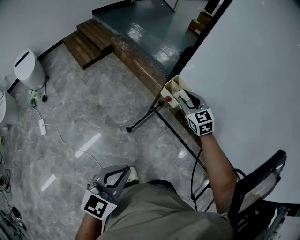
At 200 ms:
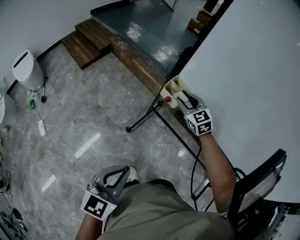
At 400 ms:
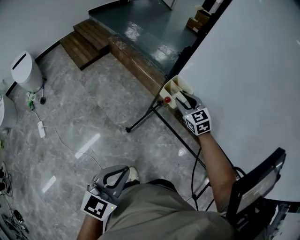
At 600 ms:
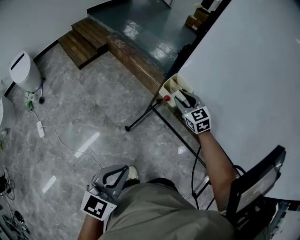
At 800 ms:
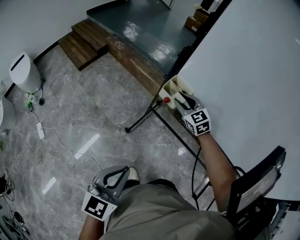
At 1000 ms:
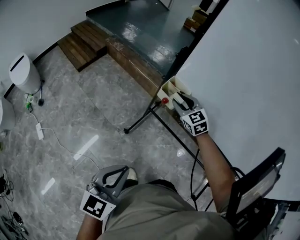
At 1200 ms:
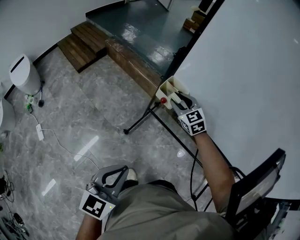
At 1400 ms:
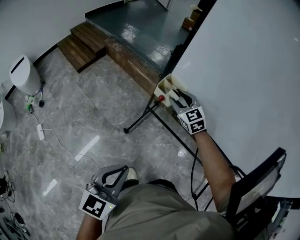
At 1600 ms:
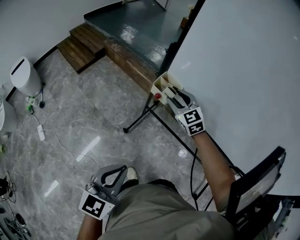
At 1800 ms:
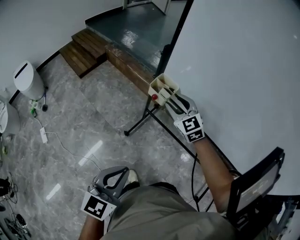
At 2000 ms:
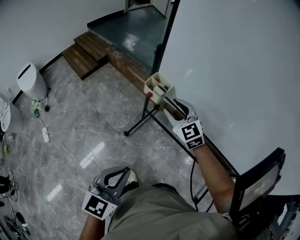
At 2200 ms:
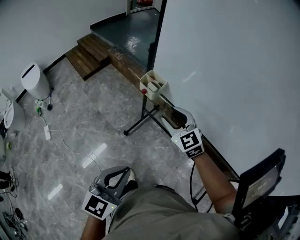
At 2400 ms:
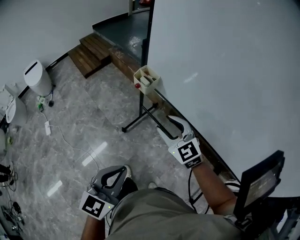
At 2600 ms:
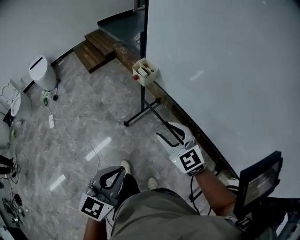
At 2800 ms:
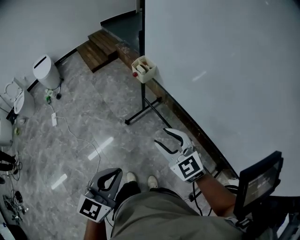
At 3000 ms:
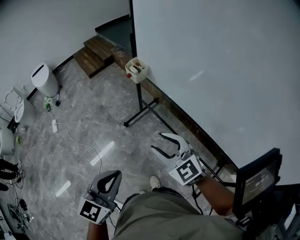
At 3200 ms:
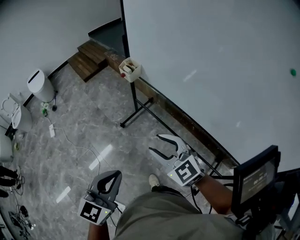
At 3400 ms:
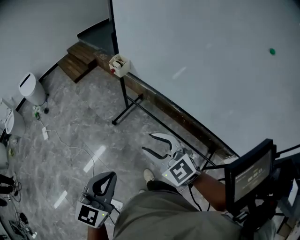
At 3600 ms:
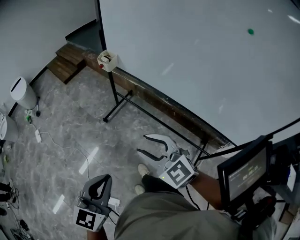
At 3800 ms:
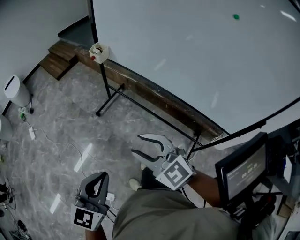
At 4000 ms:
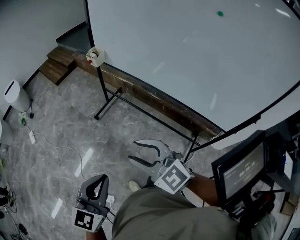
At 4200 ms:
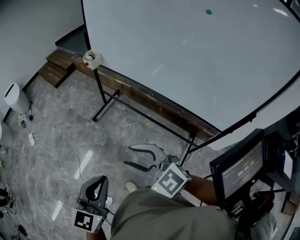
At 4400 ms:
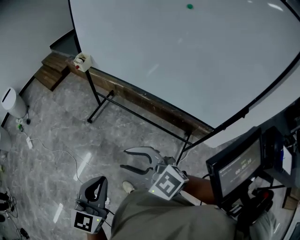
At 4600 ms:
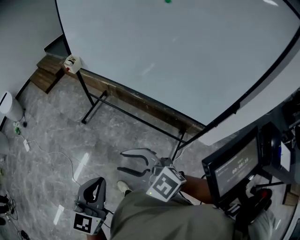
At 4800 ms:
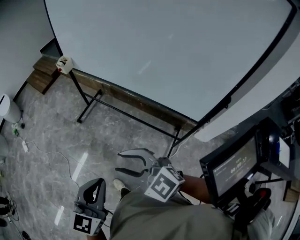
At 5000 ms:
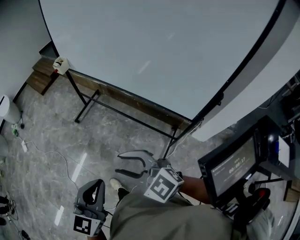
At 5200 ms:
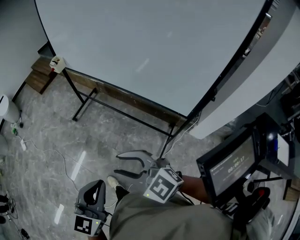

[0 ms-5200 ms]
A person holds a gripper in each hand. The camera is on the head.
0 ms to 1800 ms: The left gripper is displaced to the right by some 5 cm.
1800 ms to 3400 ms: The left gripper is displaced backward and to the right by roughly 35 cm. Meanwhile the right gripper heads backward, covering about 50 cm.
3400 ms to 5200 ms: The pair of grippers is taken backward and to the right, roughly 40 cm.

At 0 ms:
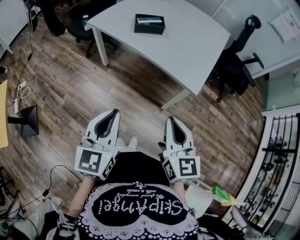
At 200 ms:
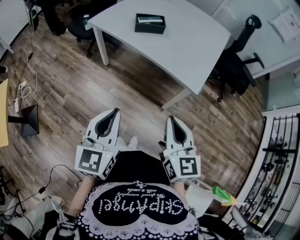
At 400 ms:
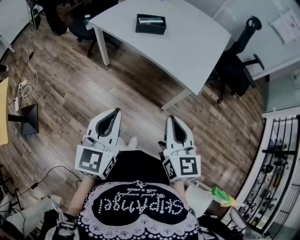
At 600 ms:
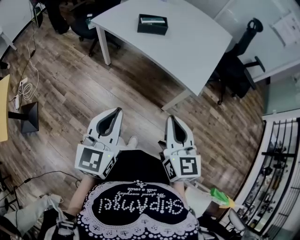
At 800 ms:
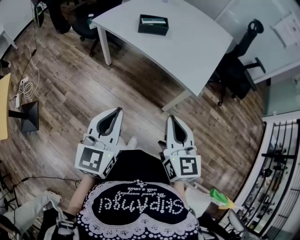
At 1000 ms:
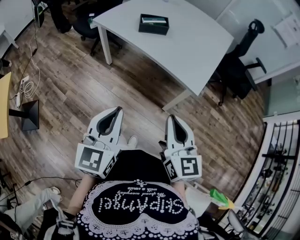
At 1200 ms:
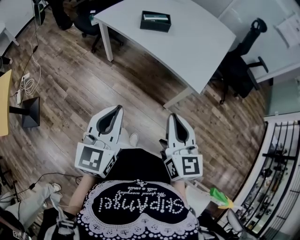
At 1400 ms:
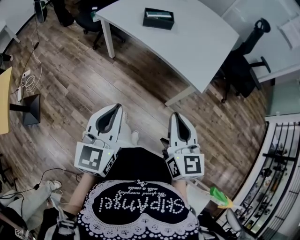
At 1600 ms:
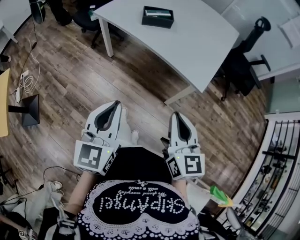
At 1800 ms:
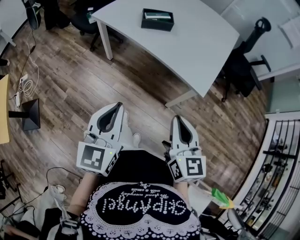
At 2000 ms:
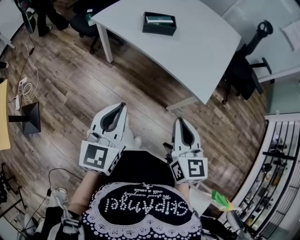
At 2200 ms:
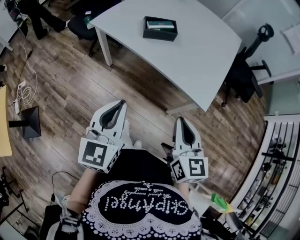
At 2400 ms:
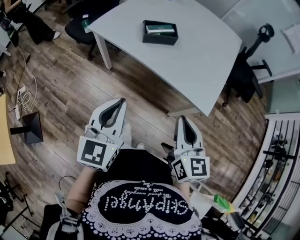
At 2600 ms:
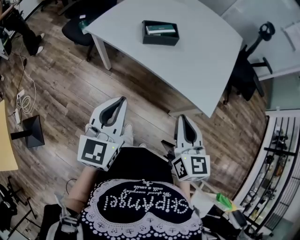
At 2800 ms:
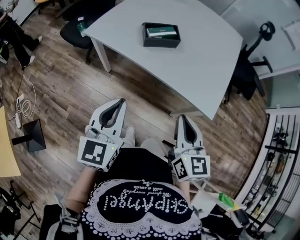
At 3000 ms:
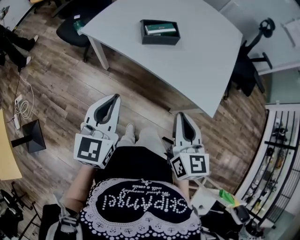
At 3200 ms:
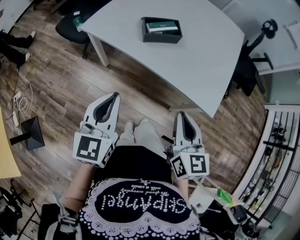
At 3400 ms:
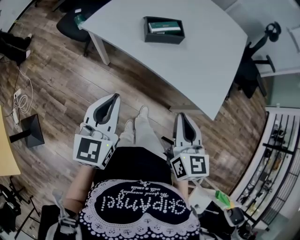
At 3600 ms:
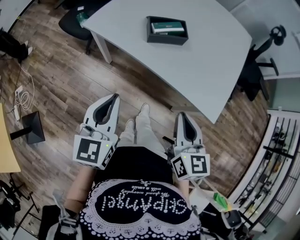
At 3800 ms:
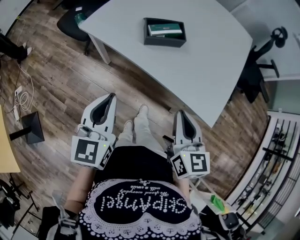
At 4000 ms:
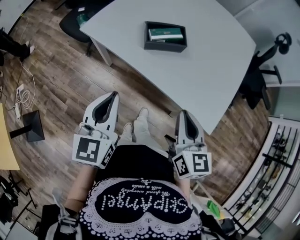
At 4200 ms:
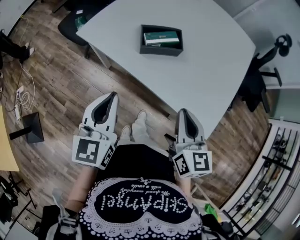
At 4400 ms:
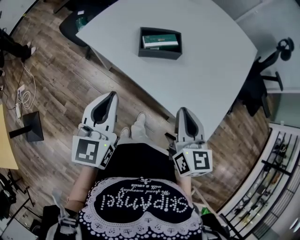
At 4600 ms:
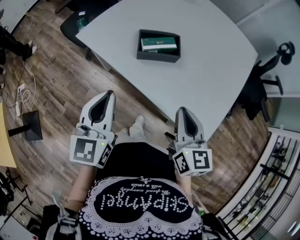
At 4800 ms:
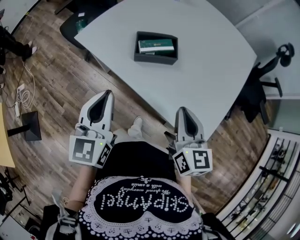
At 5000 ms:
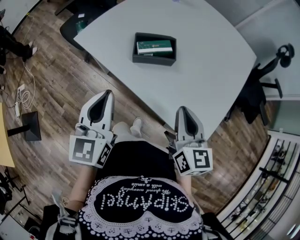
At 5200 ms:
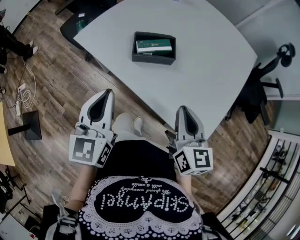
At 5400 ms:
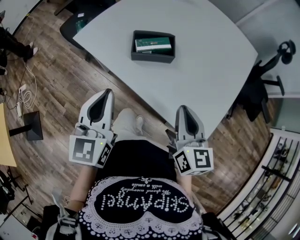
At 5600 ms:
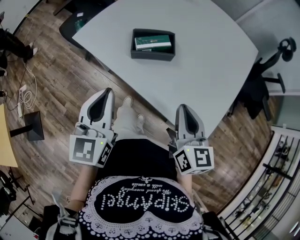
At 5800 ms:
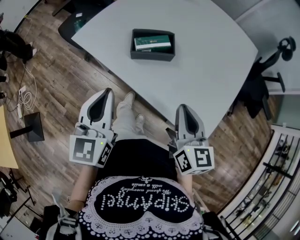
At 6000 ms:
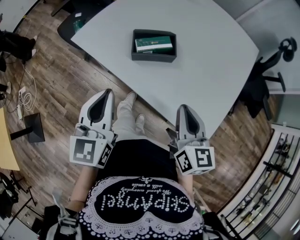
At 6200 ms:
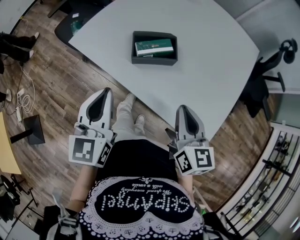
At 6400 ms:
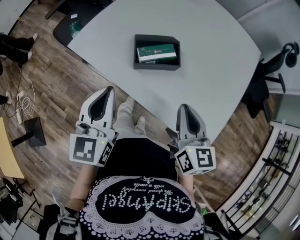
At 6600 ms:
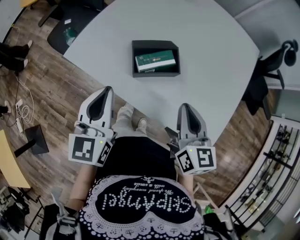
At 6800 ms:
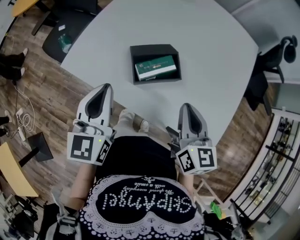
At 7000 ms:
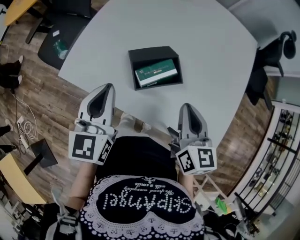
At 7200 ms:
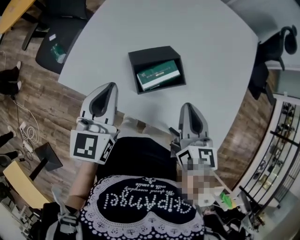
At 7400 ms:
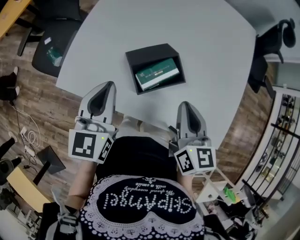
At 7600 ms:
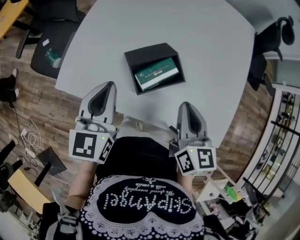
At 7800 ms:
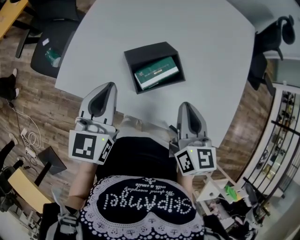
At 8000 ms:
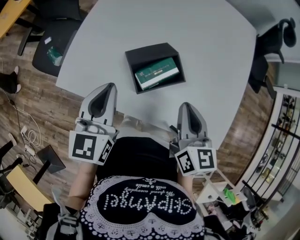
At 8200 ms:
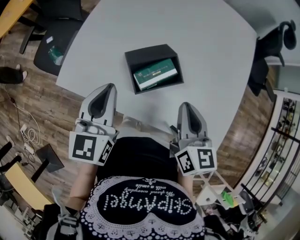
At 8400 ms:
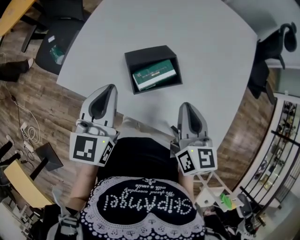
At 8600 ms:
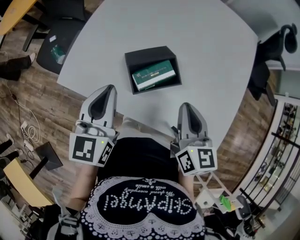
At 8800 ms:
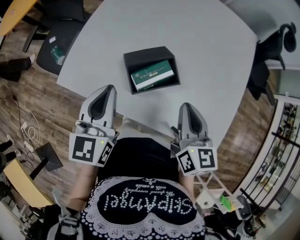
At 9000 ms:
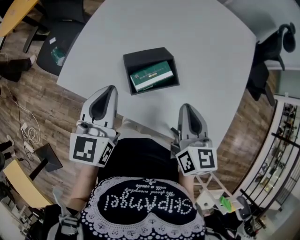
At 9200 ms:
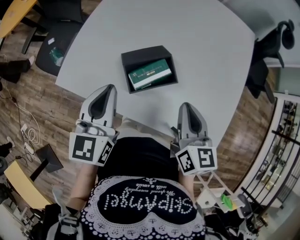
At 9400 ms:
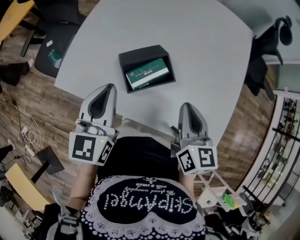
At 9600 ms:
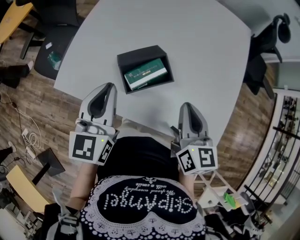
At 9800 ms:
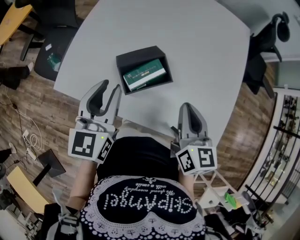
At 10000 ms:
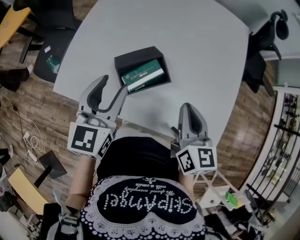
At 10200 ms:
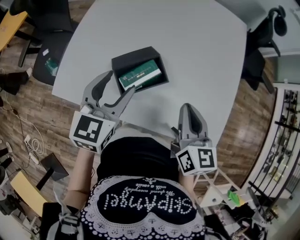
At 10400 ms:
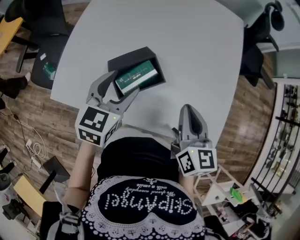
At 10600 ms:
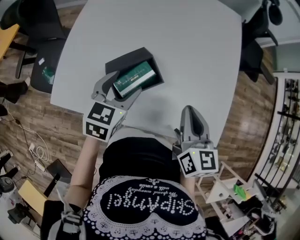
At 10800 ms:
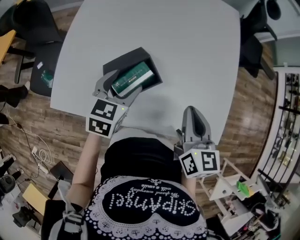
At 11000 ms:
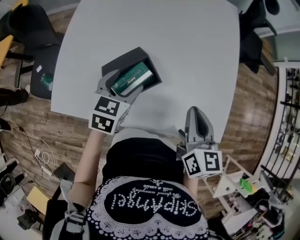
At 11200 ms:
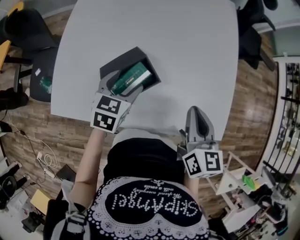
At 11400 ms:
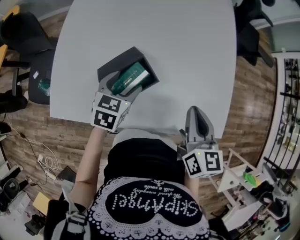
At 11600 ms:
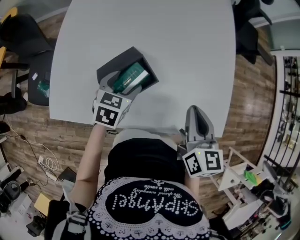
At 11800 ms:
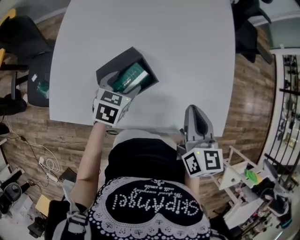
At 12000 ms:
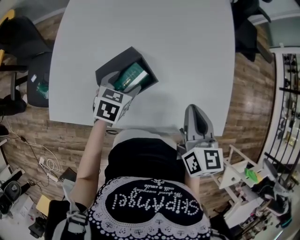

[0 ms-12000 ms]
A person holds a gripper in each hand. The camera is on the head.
0 ms to 1600 ms: There are only small adjustments of the grippers.
1600 ms to 3000 ms: The right gripper heads forward, covering about 20 cm. The left gripper heads forward and to the left, covering roughly 25 cm.
3000 ms to 4400 ms: Both grippers travel together forward, about 15 cm.
4400 ms to 6000 ms: The grippers move only a little.
6000 ms to 7600 ms: The right gripper shifts some 20 cm forward and to the left, and turns by some 20 degrees. Meanwhile the left gripper heads forward, covering roughly 25 cm, and changes its angle by about 20 degrees.
7600 ms to 9000 ms: The grippers stay close to where they were, moving slightly.
9000 ms to 10400 ms: The left gripper goes about 10 cm to the right and downward, turns by approximately 30 degrees, and opens its fingers, while the right gripper moves to the right, approximately 5 cm.
10400 ms to 12000 ms: The left gripper is displaced downward by some 15 cm, and turns by some 20 degrees.

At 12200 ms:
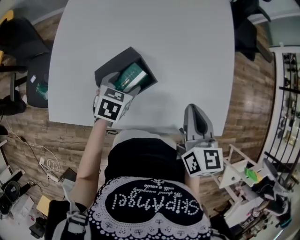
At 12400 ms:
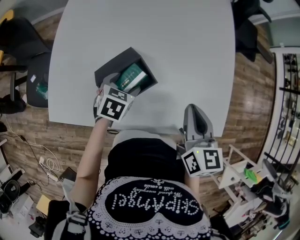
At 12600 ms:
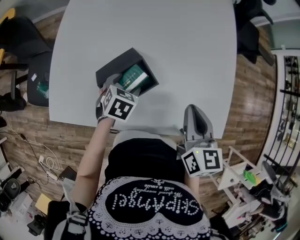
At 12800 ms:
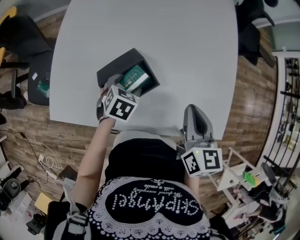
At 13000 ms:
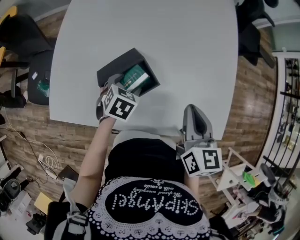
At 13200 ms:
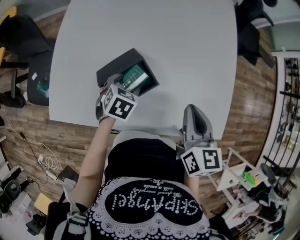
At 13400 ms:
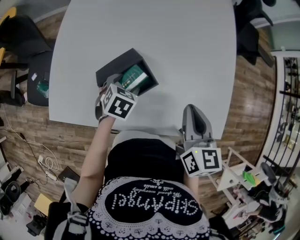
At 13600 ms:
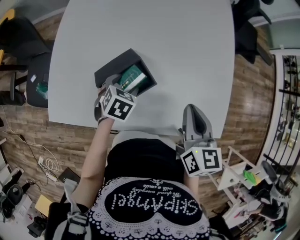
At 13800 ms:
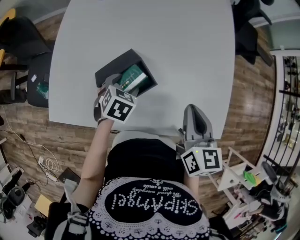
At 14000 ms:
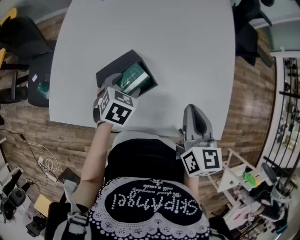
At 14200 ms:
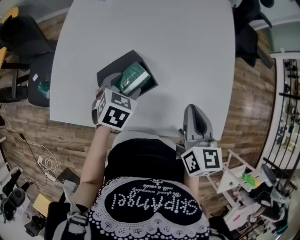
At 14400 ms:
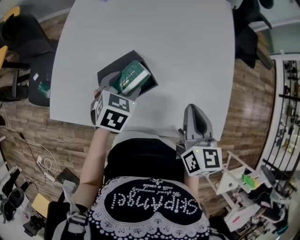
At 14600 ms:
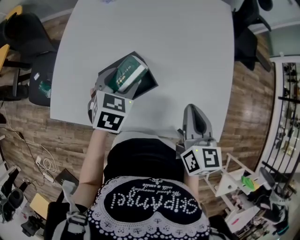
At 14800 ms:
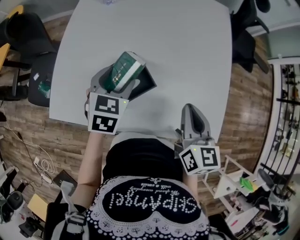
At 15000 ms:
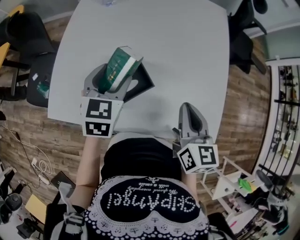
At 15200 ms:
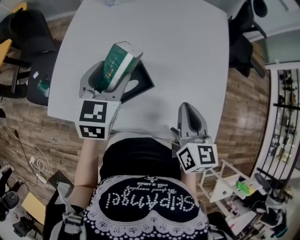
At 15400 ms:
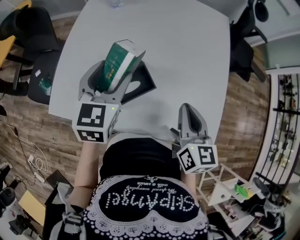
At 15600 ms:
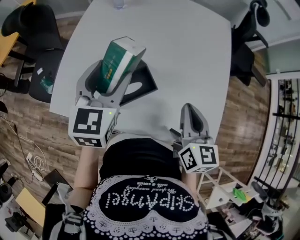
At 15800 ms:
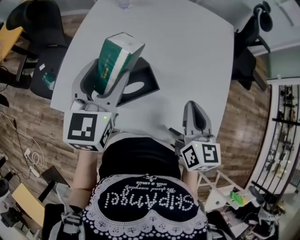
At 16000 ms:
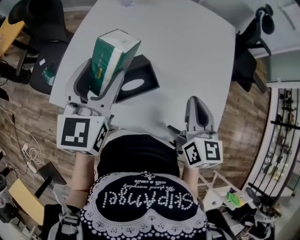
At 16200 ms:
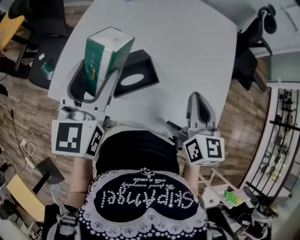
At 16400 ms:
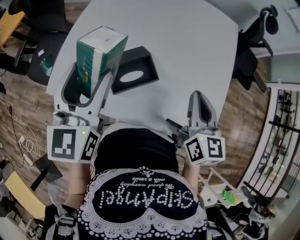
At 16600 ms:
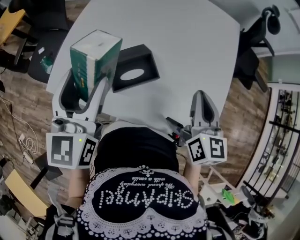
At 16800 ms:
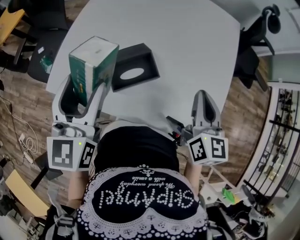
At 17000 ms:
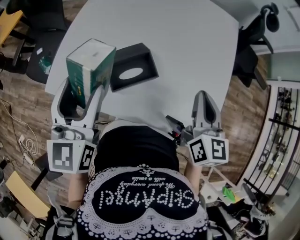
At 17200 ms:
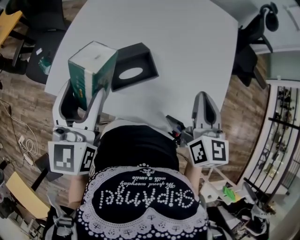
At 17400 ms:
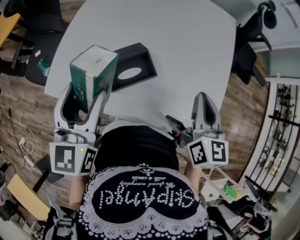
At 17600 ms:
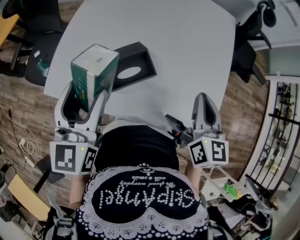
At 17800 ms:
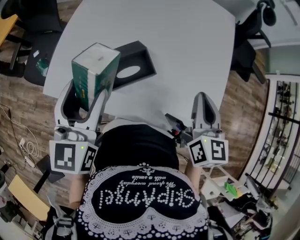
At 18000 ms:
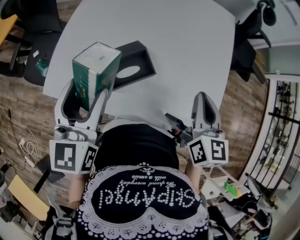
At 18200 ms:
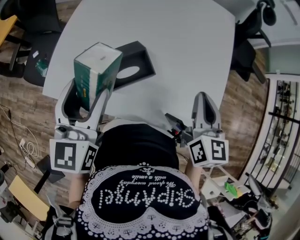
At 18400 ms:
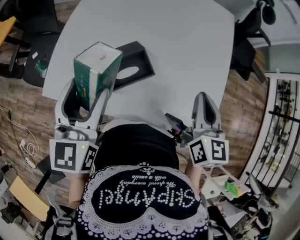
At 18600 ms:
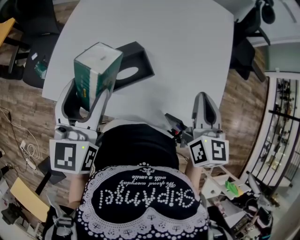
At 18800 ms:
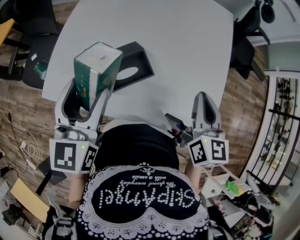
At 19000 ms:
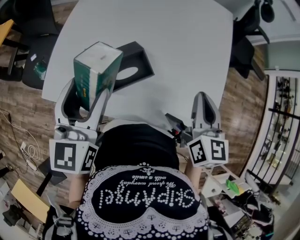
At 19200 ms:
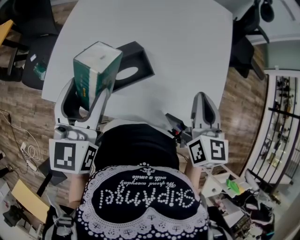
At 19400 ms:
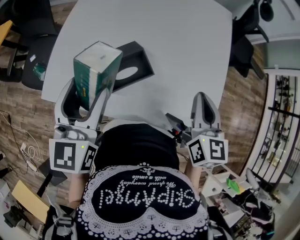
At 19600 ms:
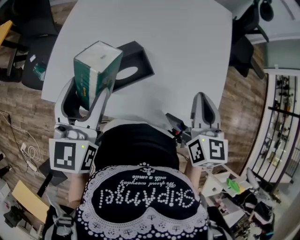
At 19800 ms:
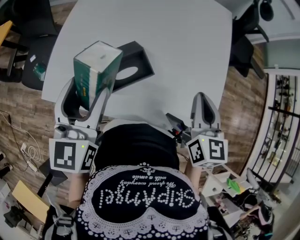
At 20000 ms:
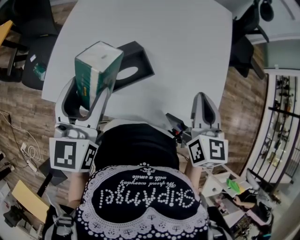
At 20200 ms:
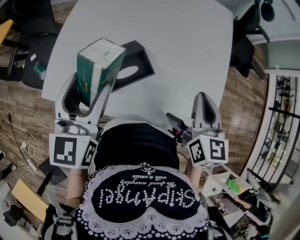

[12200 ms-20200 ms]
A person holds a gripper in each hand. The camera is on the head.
12200 ms to 13800 ms: The grippers stay close to where they were, moving slightly.
13800 ms to 15400 ms: The left gripper travels upward by about 20 cm, and tips its fingers upward by roughly 40 degrees.
15400 ms to 17000 ms: The left gripper moves backward, to the left and upward, some 15 cm, and changes its angle by approximately 20 degrees.
17000 ms to 20200 ms: The grippers move only a little.
